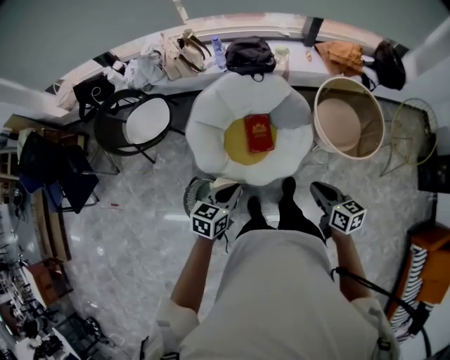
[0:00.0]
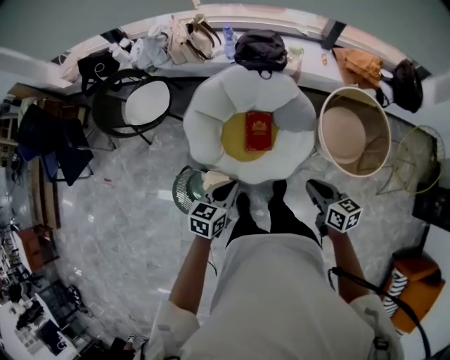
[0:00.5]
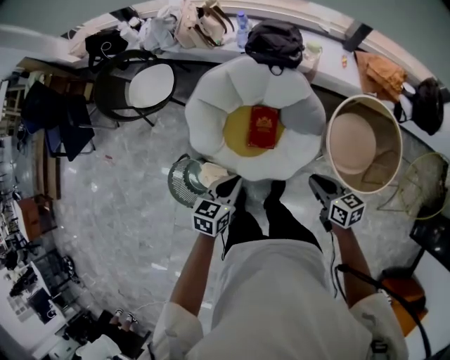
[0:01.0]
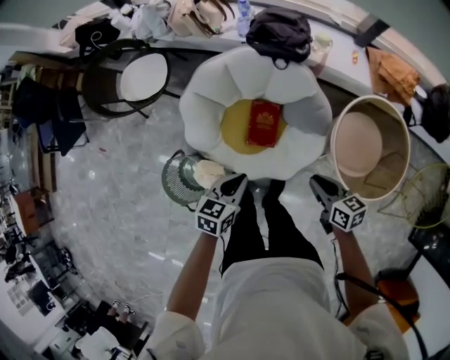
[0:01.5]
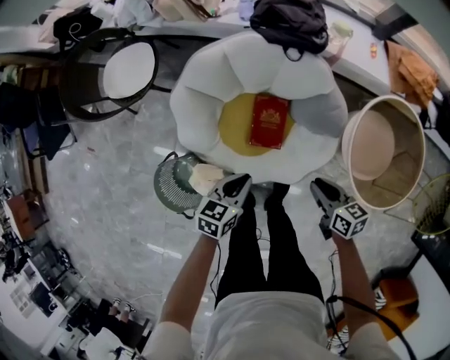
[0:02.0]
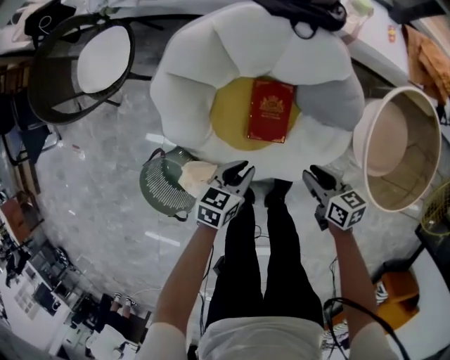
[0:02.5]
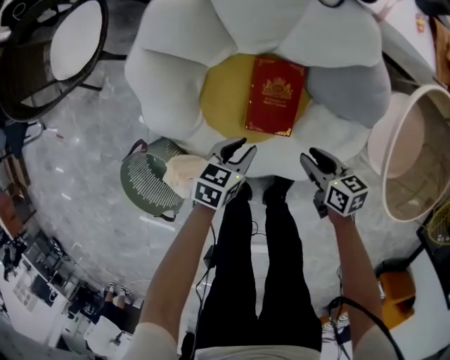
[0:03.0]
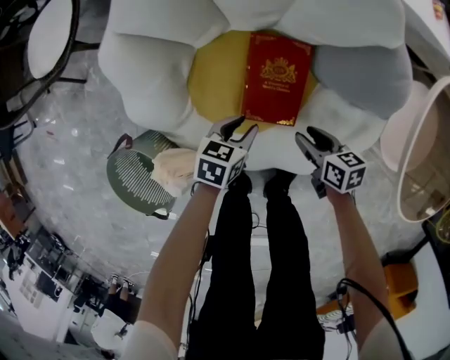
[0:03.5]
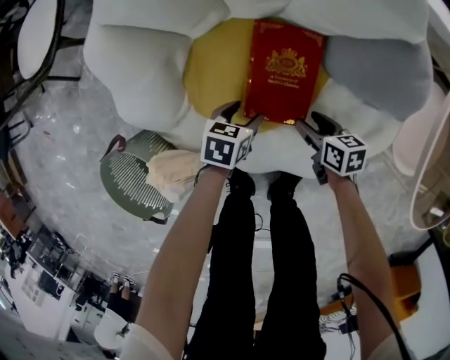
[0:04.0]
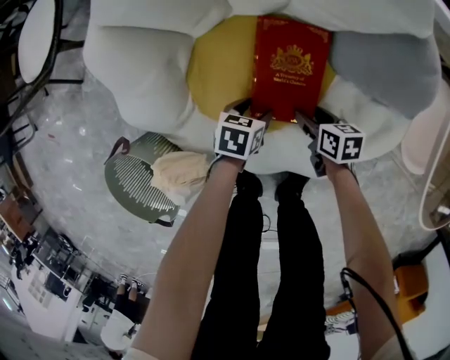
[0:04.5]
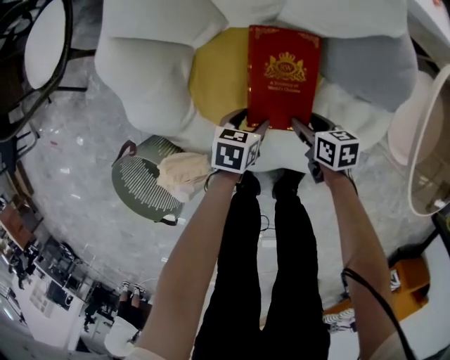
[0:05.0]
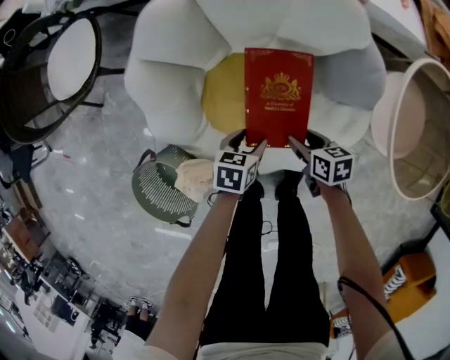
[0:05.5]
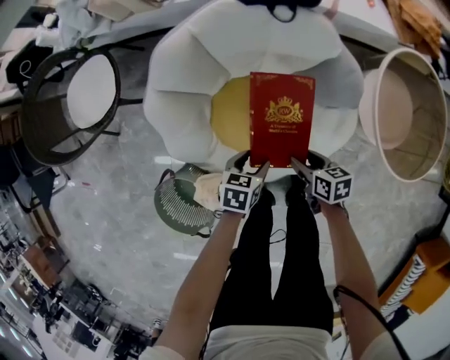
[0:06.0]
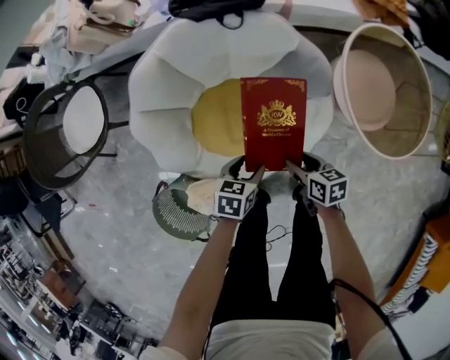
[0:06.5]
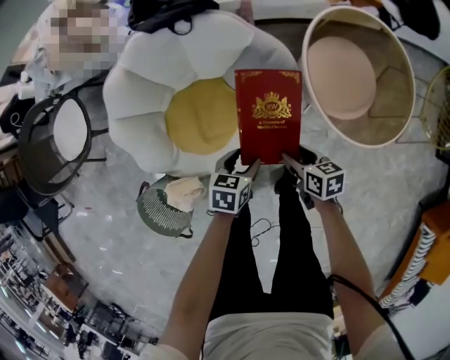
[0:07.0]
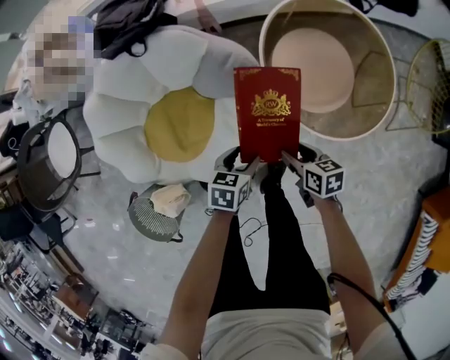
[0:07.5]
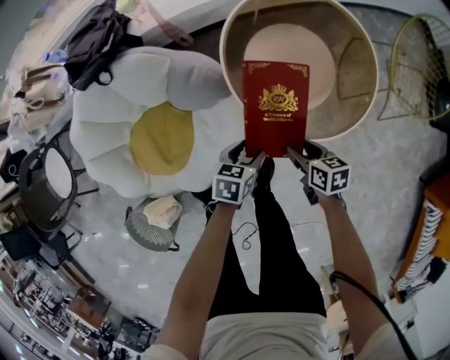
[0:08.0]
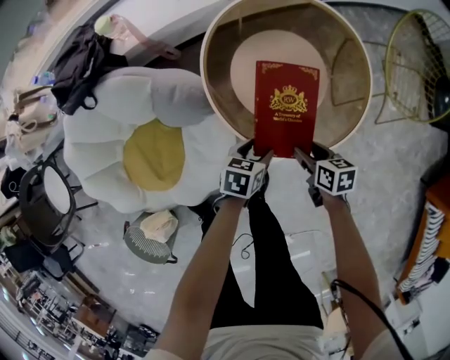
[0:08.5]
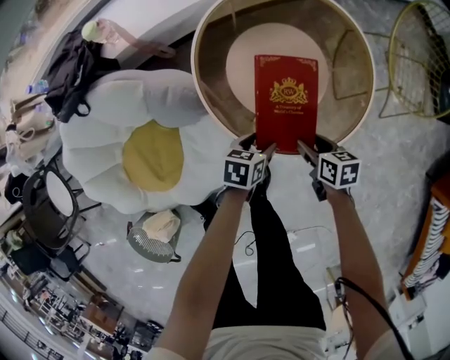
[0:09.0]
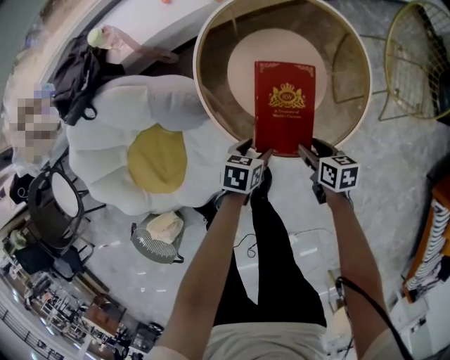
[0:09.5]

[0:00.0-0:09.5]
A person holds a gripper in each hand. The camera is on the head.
0.0 to 2.0 s: The right gripper heads downward and forward, covering some 35 cm, and swivels roughly 20 degrees. The left gripper moves downward, forward and to the right, about 30 cm.
2.0 to 4.0 s: The two grippers go roughly 50 cm downward. The right gripper opens up; the left gripper opens its fingers.
4.0 to 5.5 s: The grippers both shift upward by some 15 cm.
5.5 to 7.5 s: Both grippers move to the right and upward, about 35 cm. The right gripper changes its angle by approximately 20 degrees. Meanwhile the left gripper rotates approximately 20 degrees.
7.5 to 9.5 s: The left gripper is displaced to the right, forward and downward by approximately 25 cm. Meanwhile the right gripper goes approximately 25 cm to the right and forward.

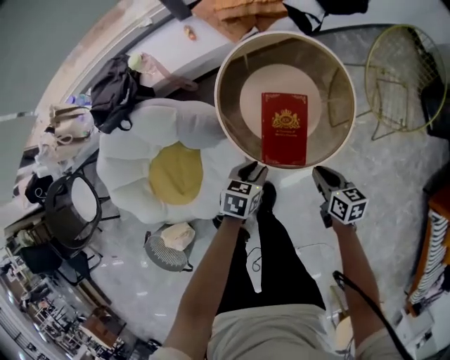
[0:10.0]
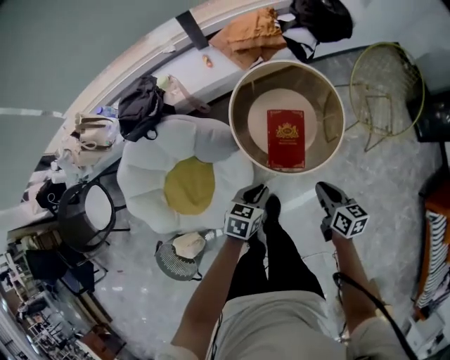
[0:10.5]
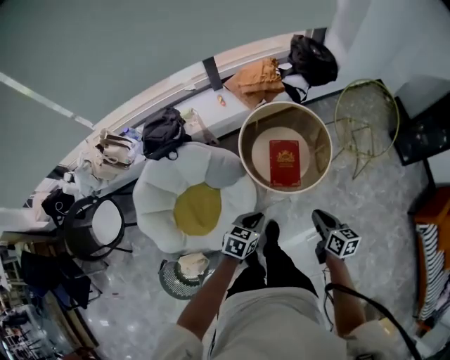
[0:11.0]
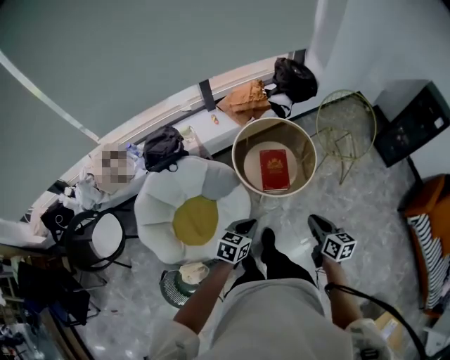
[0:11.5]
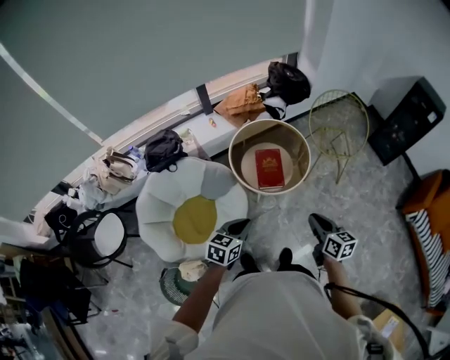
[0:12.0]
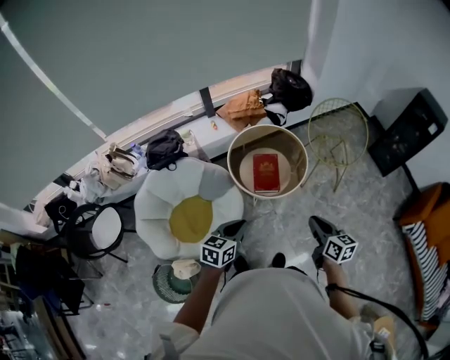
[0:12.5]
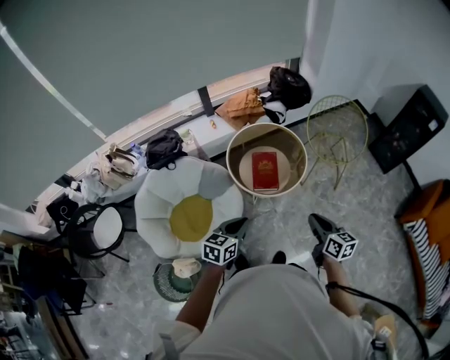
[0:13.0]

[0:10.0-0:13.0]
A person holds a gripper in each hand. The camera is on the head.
10.0 to 11.5 s: Both grippers travel together upward and backward, roughly 40 cm. The left gripper changes its angle by about 20 degrees, and closes its fingers. Meanwhile the right gripper rotates approximately 20 degrees.
11.5 to 13.0 s: The right gripper shifts approximately 10 cm to the right and upward. Meanwhile the left gripper travels upward by about 10 cm.

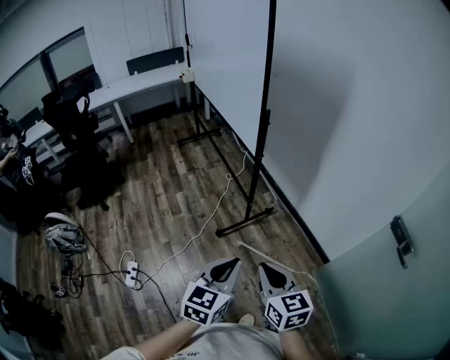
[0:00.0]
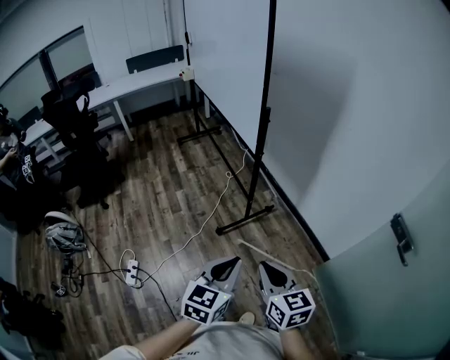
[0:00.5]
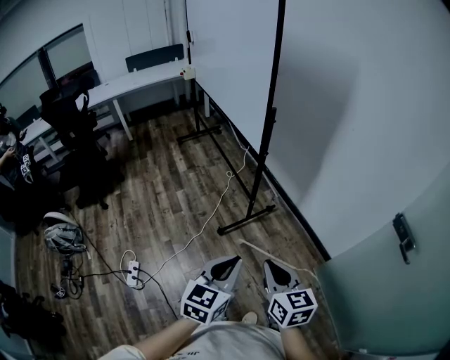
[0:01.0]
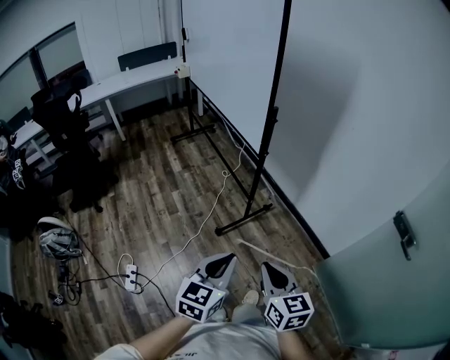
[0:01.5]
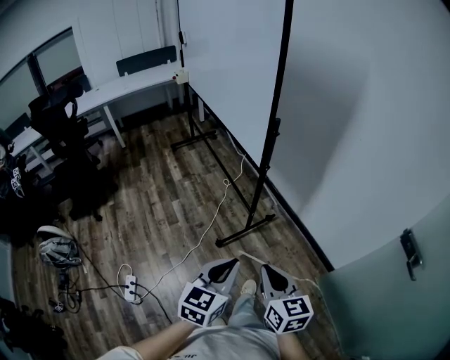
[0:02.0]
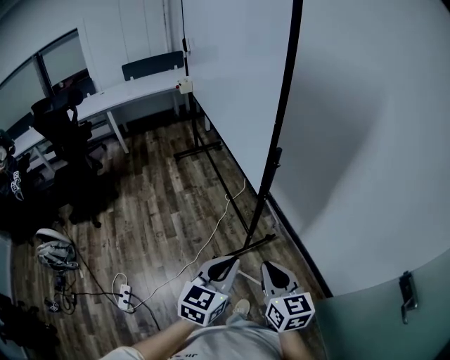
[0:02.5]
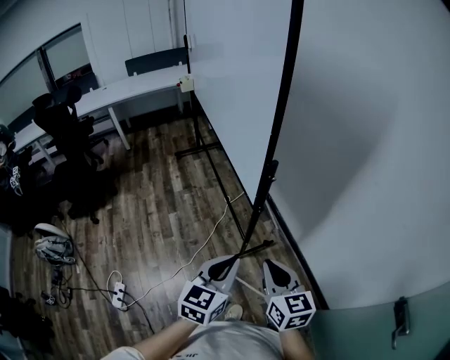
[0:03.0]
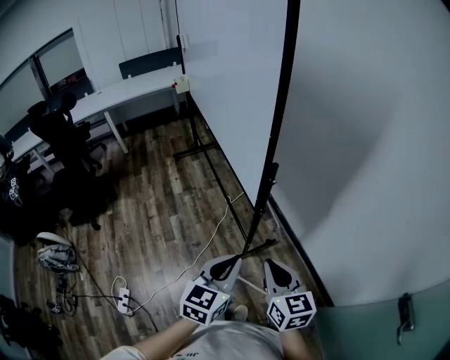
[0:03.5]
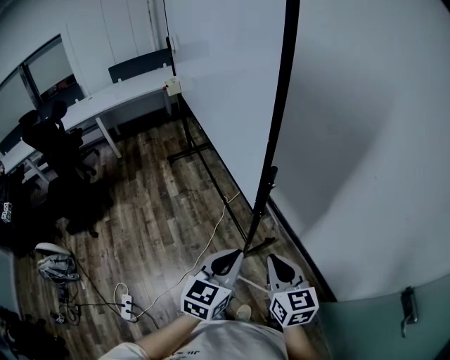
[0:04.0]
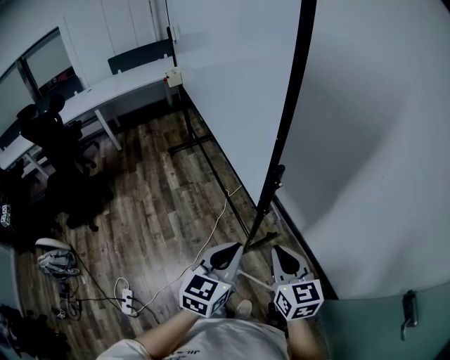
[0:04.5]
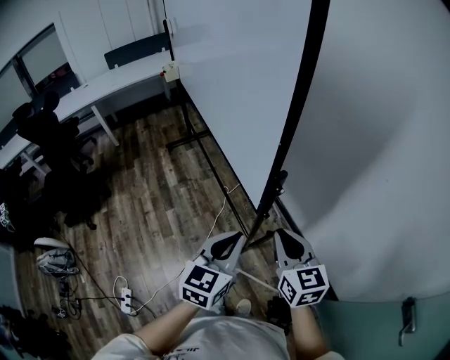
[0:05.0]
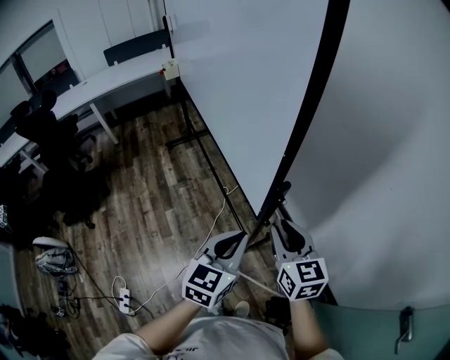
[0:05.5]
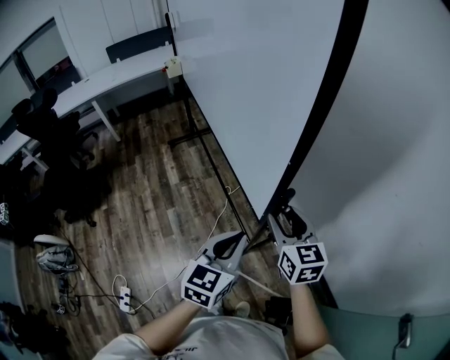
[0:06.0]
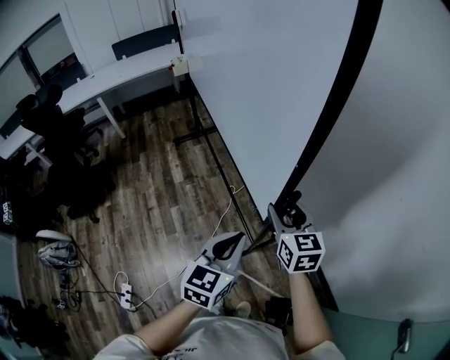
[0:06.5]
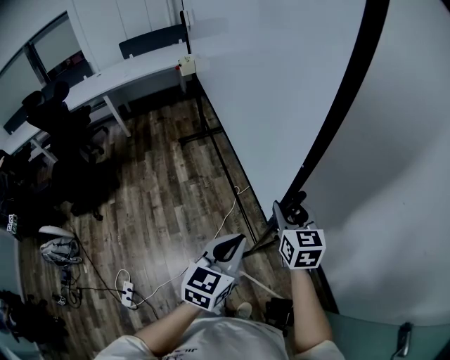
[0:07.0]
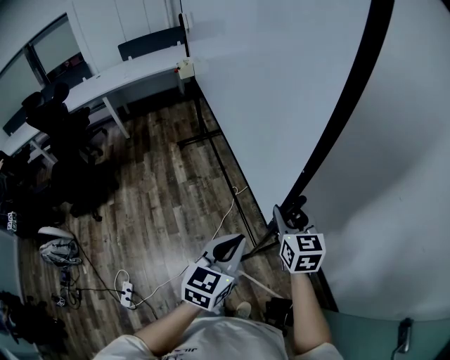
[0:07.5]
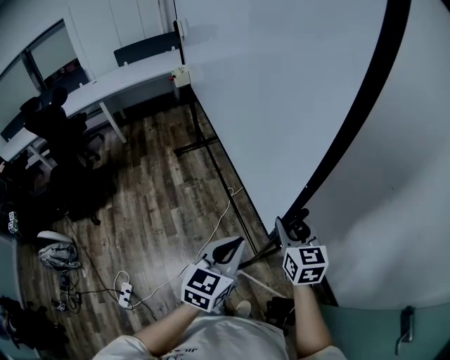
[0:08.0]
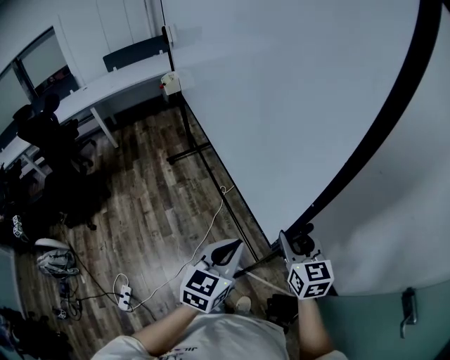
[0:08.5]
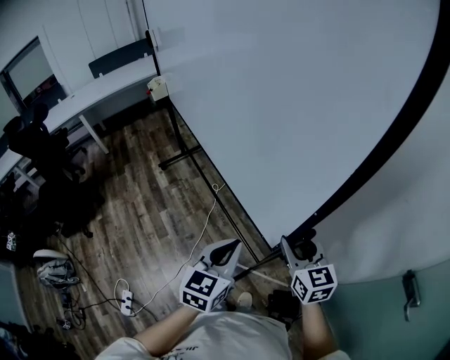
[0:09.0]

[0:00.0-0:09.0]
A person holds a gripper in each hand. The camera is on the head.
0.0 to 2.0 s: The right gripper moves forward, roughly 10 cm. Meanwhile the left gripper is displaced forward and to the left by roughly 10 cm.
2.0 to 4.5 s: Both grippers travel together forward, about 25 cm.
4.5 to 7.0 s: The left gripper moves forward, some 10 cm. Meanwhile the right gripper moves forward, about 20 cm, and opens its fingers.
7.0 to 9.0 s: The right gripper is displaced backward and to the right by about 25 cm; the left gripper moves backward and to the right, roughly 10 cm.

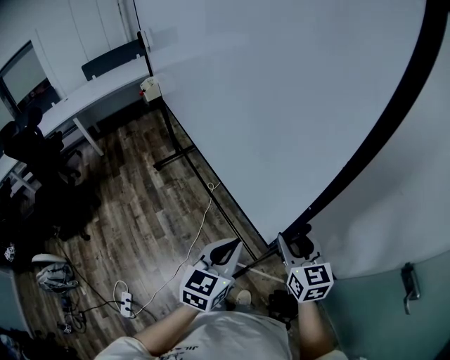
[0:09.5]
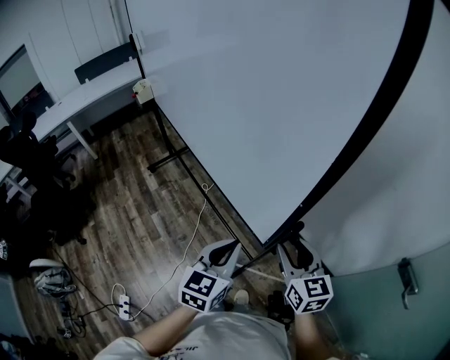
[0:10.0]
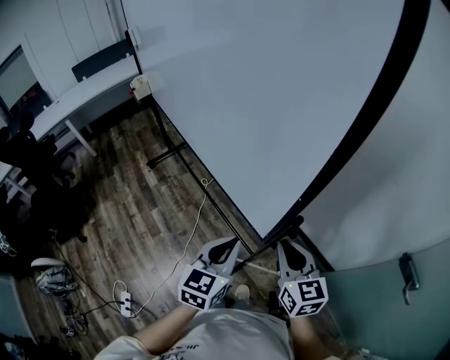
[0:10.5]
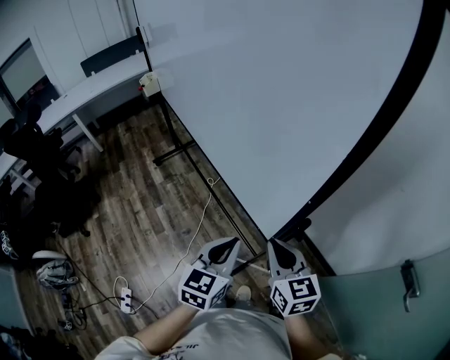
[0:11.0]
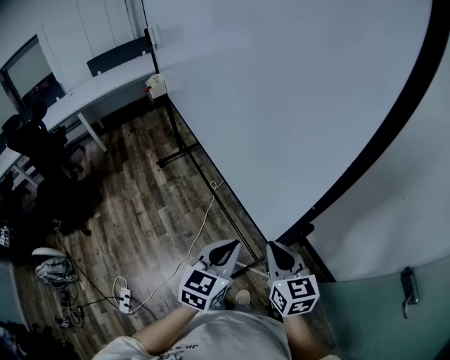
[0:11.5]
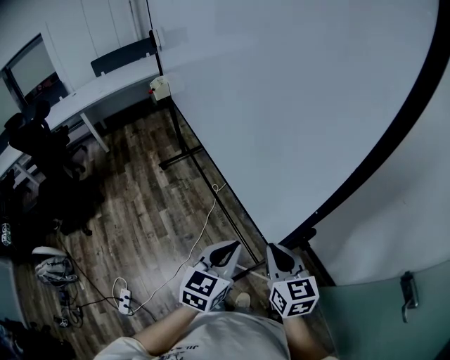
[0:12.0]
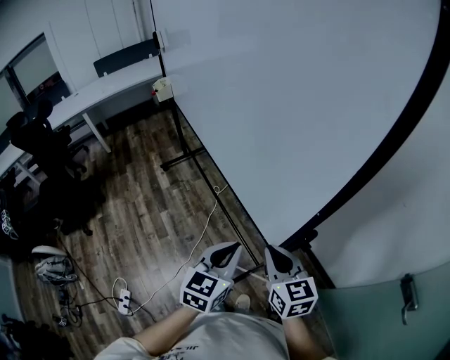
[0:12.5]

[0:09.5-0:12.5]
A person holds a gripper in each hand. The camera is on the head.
9.5 to 11.0 s: The right gripper shifts by about 5 cm, and closes its fingers.
11.0 to 12.5 s: There are only small adjustments of the grippers.

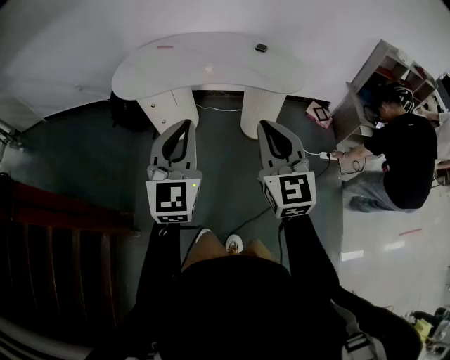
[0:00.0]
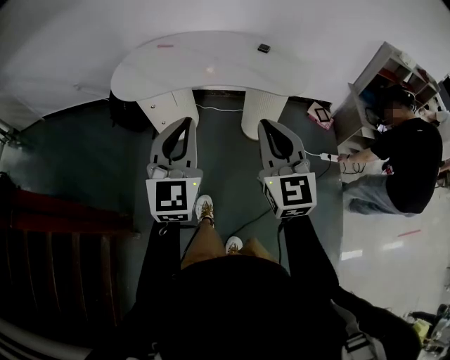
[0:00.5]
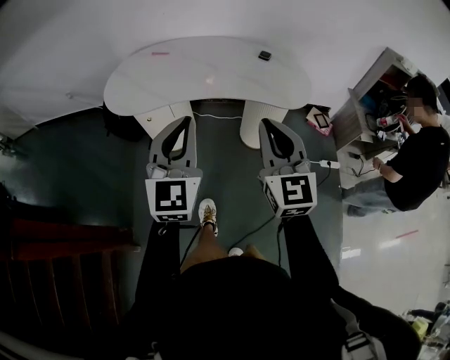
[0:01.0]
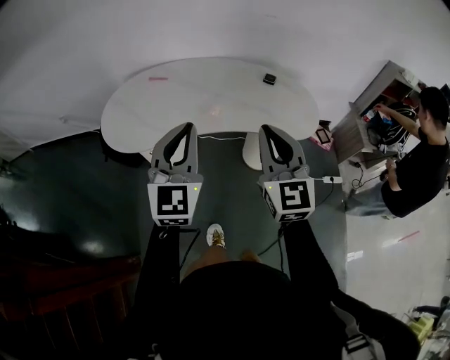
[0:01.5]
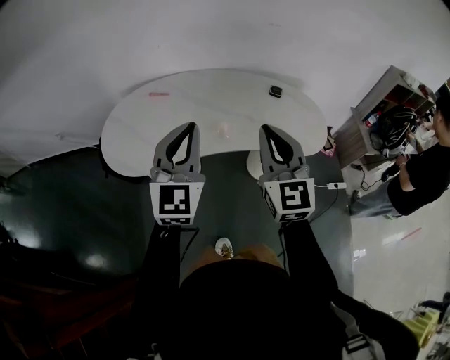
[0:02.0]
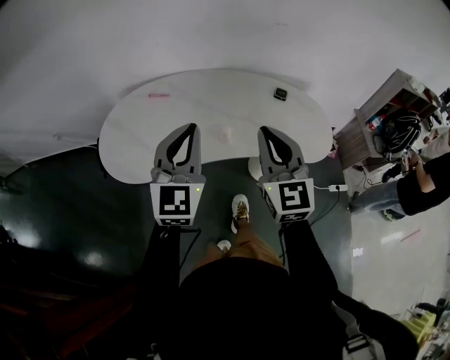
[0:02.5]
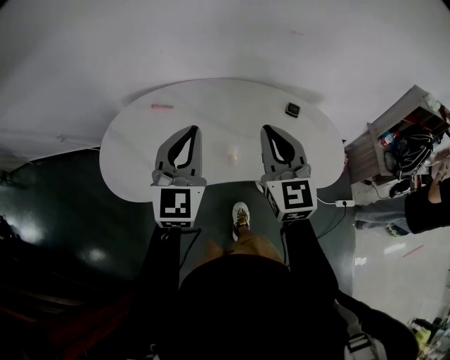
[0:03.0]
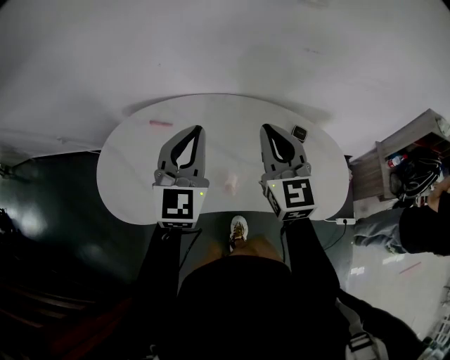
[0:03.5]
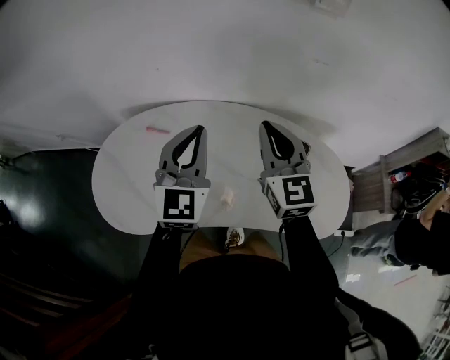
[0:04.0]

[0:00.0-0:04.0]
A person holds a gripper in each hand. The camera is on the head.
0.0 to 2.0 s: The two grippers go roughly 35 cm forward.
2.0 to 4.0 s: The grippers both shift forward by some 30 cm.
